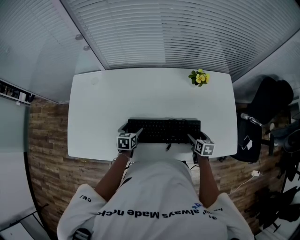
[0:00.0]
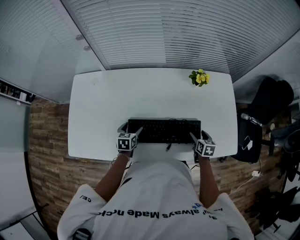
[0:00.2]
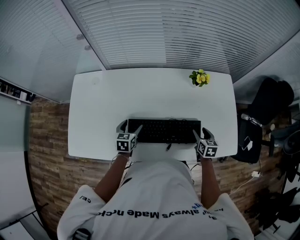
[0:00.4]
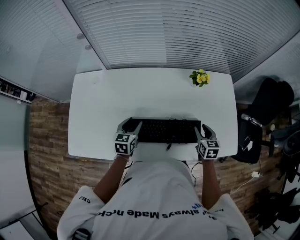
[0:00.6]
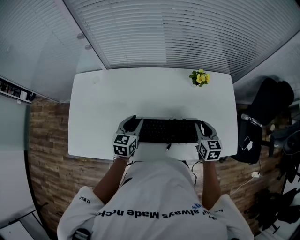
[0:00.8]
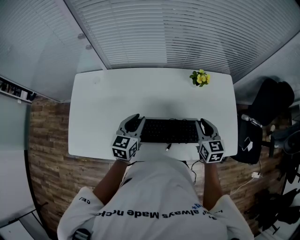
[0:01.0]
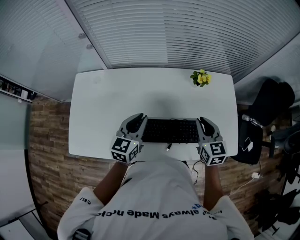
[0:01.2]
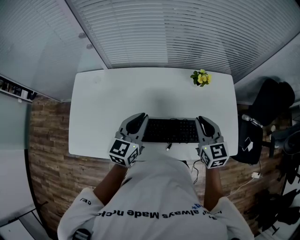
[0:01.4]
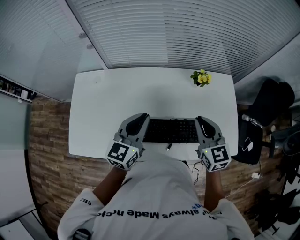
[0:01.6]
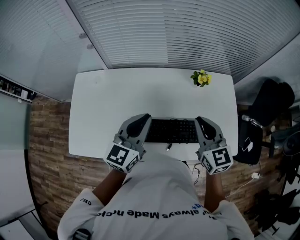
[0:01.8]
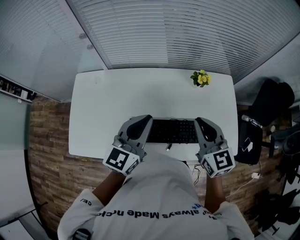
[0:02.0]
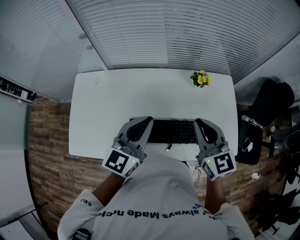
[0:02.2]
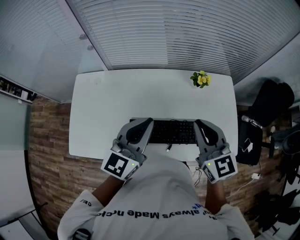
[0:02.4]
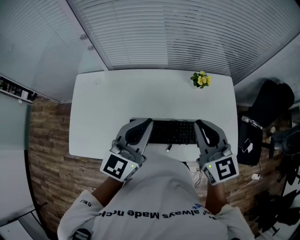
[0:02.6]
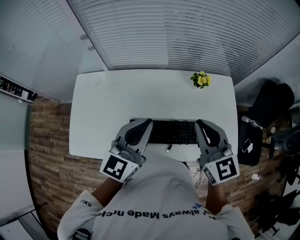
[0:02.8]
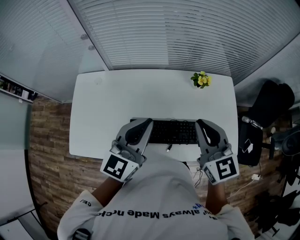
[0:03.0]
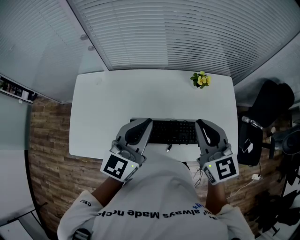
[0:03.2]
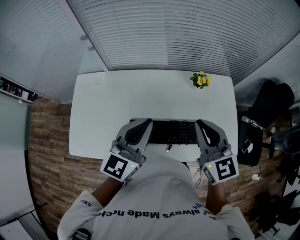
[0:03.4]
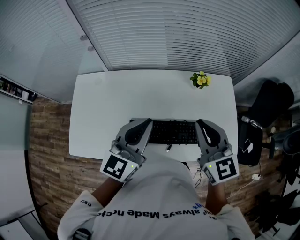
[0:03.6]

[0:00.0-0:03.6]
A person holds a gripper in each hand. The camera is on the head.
0:00.0 to 0:01.8: Both grippers move upward, approximately 30 cm. The right gripper tips its fingers upward by some 30 degrees, and closes. Meanwhile the left gripper tips its fingers upward by approximately 40 degrees, and closes up.
0:01.8 to 0:03.6: The grippers both shift upward by approximately 5 cm.

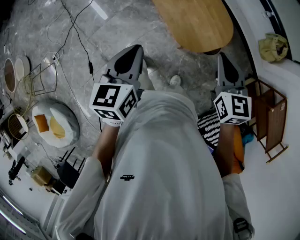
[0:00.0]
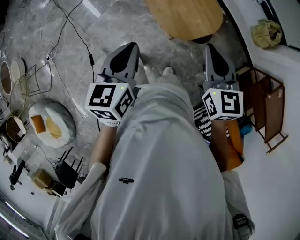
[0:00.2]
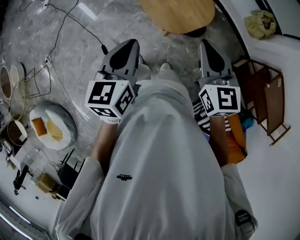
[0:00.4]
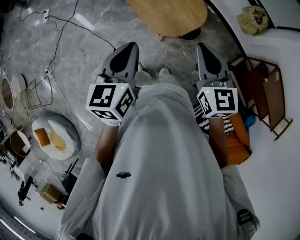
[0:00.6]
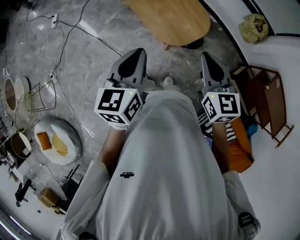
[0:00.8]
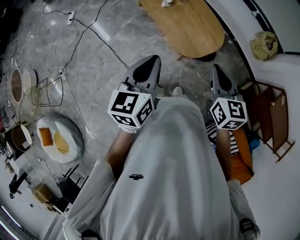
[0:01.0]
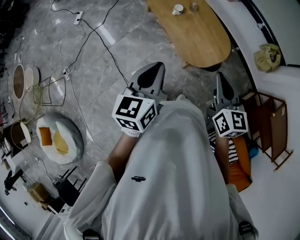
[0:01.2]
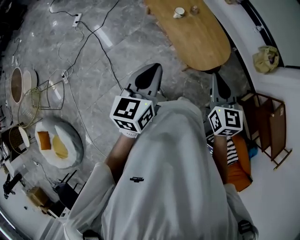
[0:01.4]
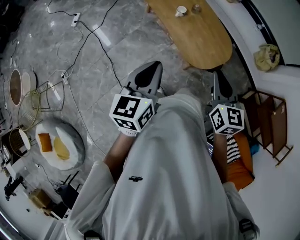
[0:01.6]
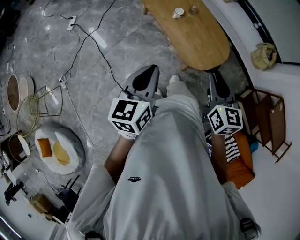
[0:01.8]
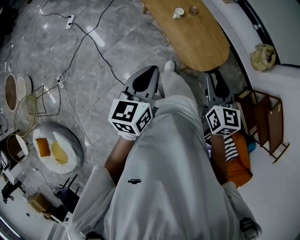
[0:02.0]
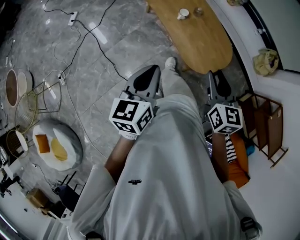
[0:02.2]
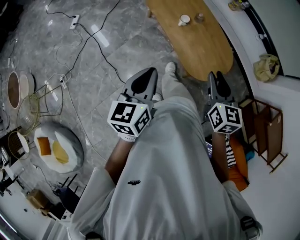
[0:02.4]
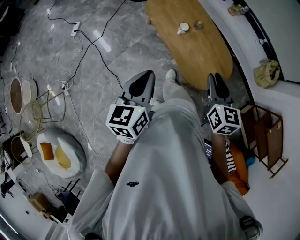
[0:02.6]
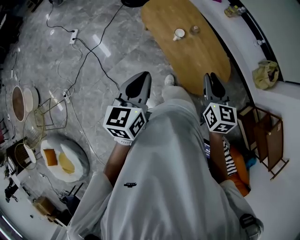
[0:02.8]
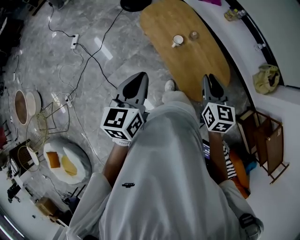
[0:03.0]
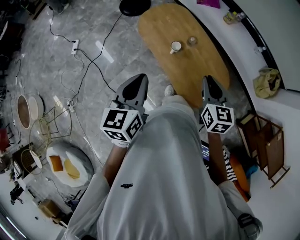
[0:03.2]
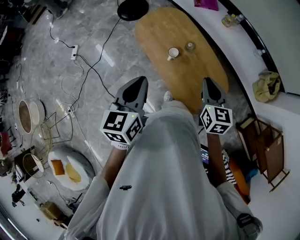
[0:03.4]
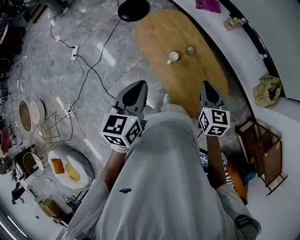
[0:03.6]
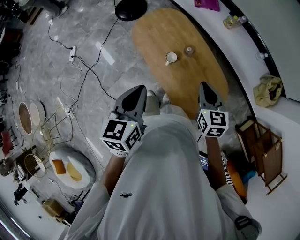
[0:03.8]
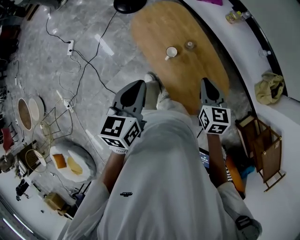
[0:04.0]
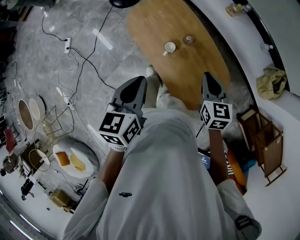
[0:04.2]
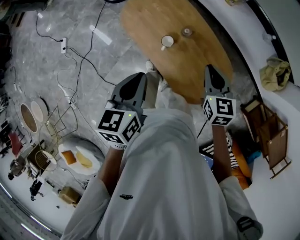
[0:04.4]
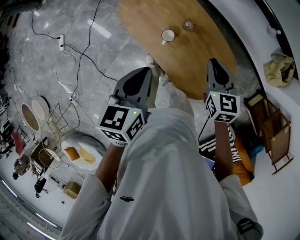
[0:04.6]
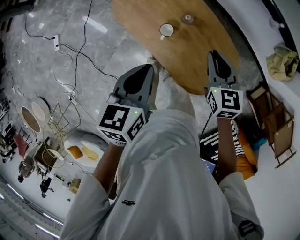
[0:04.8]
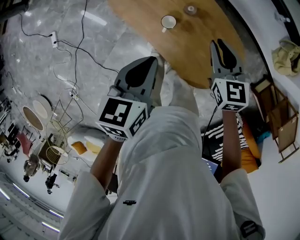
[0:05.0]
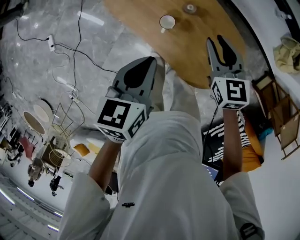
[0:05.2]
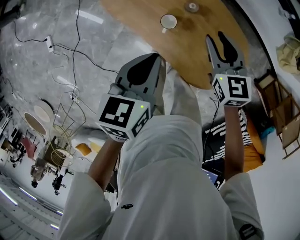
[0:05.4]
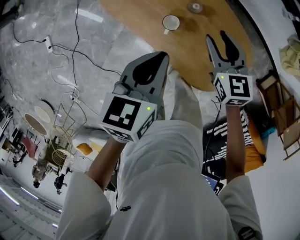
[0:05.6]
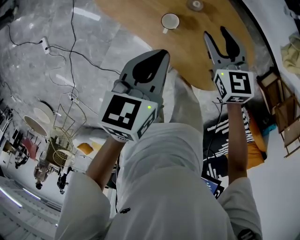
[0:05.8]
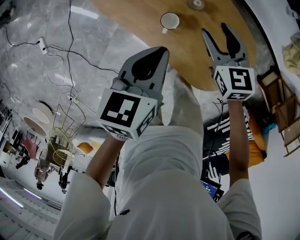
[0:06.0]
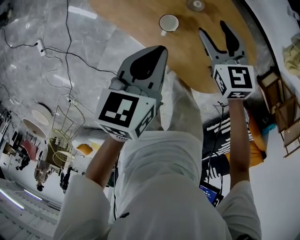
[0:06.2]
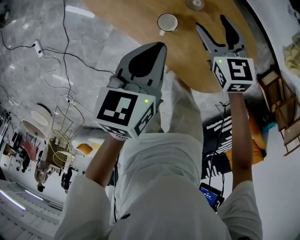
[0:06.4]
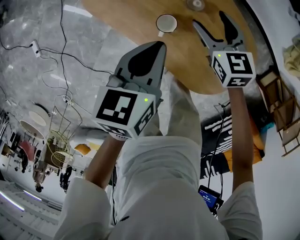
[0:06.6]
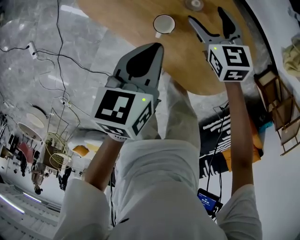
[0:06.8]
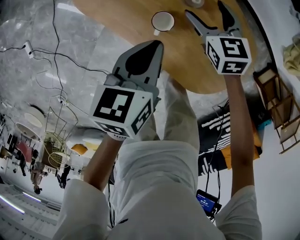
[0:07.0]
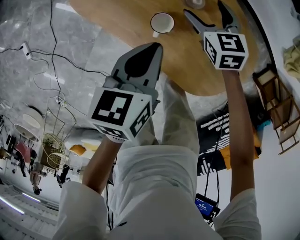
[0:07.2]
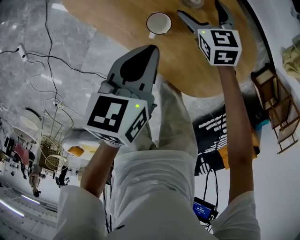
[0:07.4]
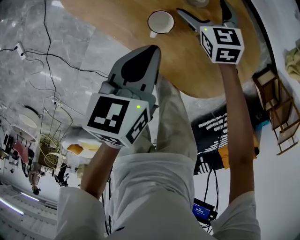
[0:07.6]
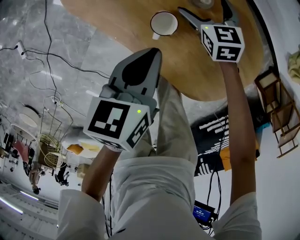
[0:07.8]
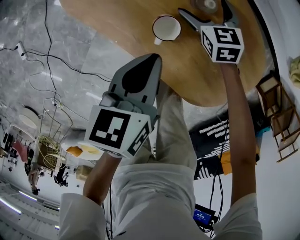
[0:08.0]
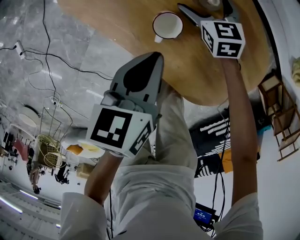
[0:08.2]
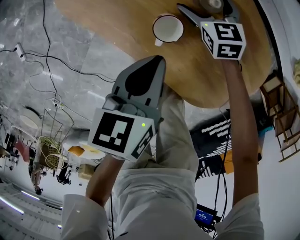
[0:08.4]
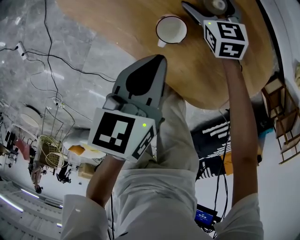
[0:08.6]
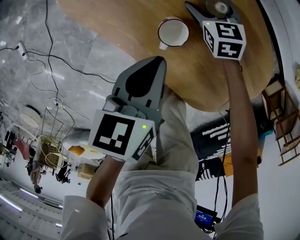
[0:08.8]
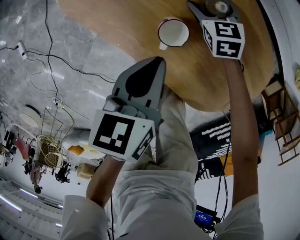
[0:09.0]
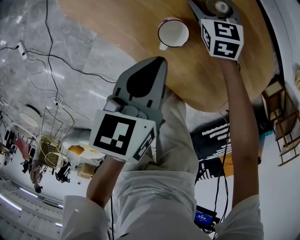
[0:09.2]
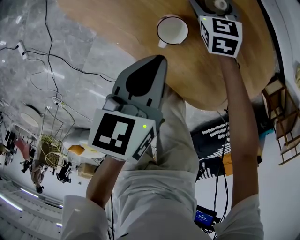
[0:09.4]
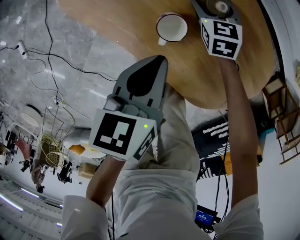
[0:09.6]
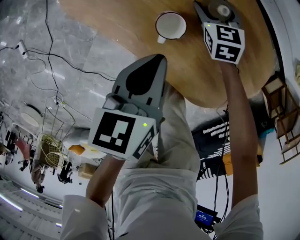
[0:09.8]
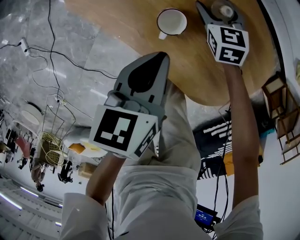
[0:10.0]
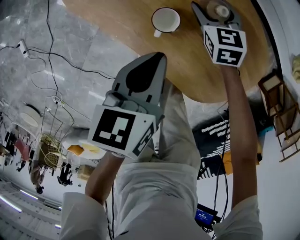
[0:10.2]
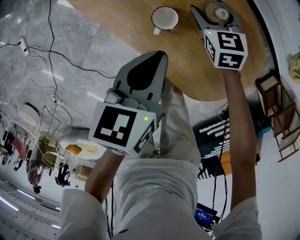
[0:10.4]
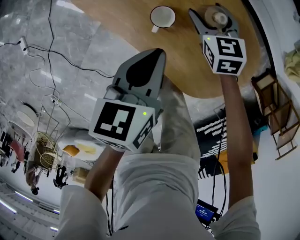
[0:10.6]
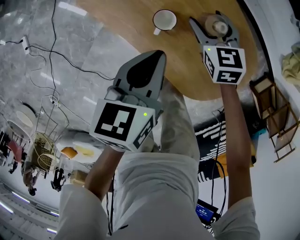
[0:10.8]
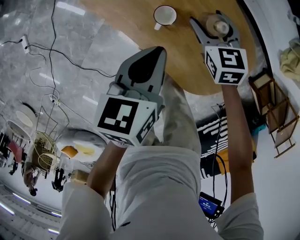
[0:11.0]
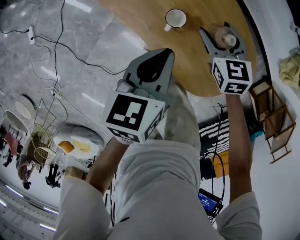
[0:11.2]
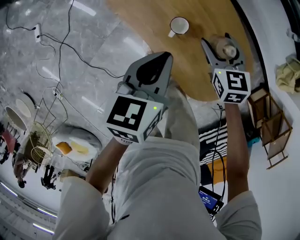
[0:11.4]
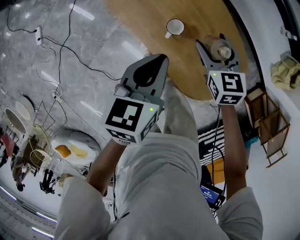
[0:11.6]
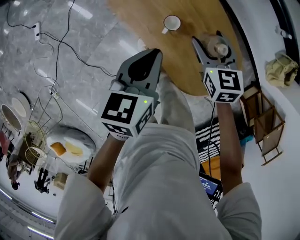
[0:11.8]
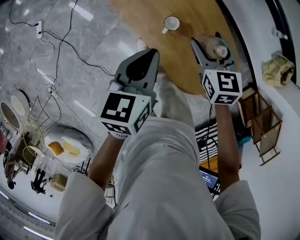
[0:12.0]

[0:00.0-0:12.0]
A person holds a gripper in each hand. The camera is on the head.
0:00.0 to 0:01.6: The right gripper is displaced to the left and backward by approximately 10 cm; the left gripper goes approximately 5 cm backward, and goes to the right and returns, some 10 cm each way.
0:01.6 to 0:03.0: Both grippers move forward, roughly 20 cm.
0:03.0 to 0:04.4: The right gripper is displaced forward and downward by approximately 20 cm, while the left gripper goes some 20 cm forward.
0:04.4 to 0:06.0: The two grippers go about 20 cm downward and forward. The right gripper opens up; the left gripper changes its angle by approximately 20 degrees.
0:06.0 to 0:07.6: The two grippers go about 15 cm downward. The right gripper opens.
0:07.6 to 0:09.0: The right gripper is displaced downward by approximately 10 cm.
0:09.0 to 0:10.4: The left gripper moves upward, some 5 cm; the right gripper is displaced upward by roughly 10 cm.
0:10.4 to 0:12.0: Both grippers move upward, roughly 20 cm.

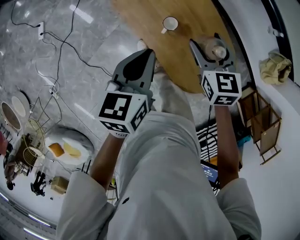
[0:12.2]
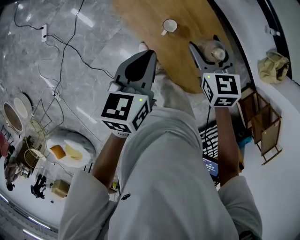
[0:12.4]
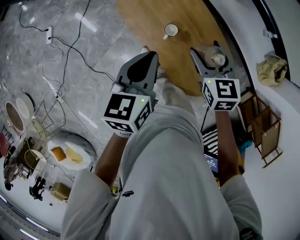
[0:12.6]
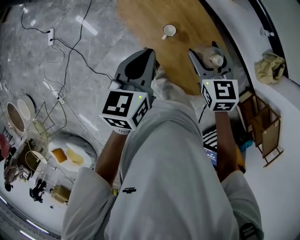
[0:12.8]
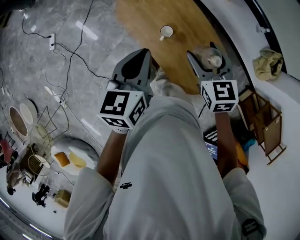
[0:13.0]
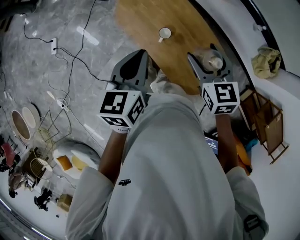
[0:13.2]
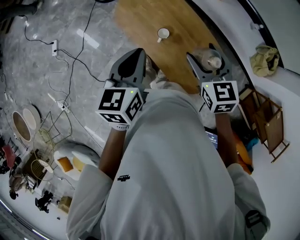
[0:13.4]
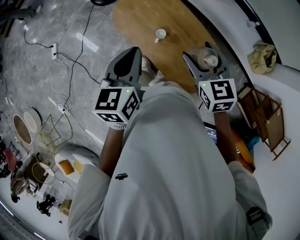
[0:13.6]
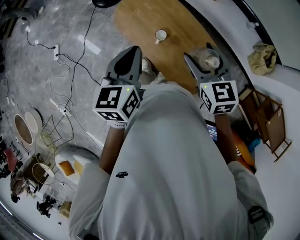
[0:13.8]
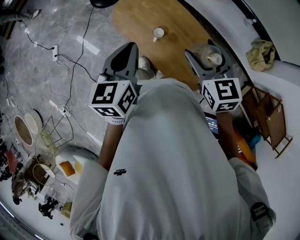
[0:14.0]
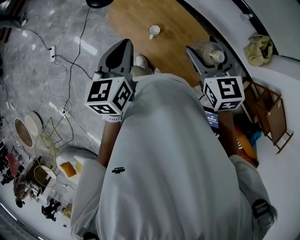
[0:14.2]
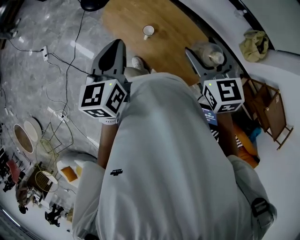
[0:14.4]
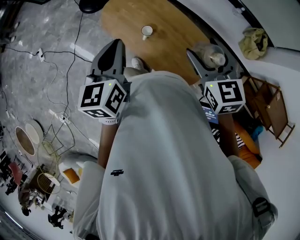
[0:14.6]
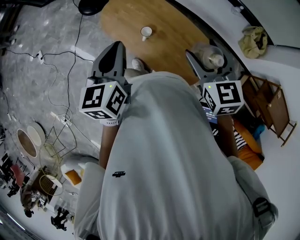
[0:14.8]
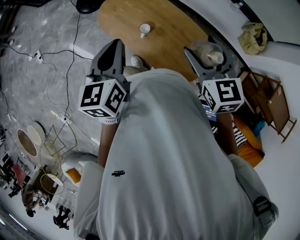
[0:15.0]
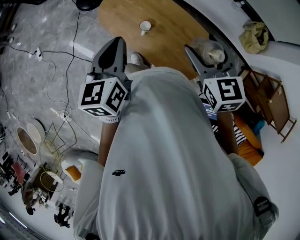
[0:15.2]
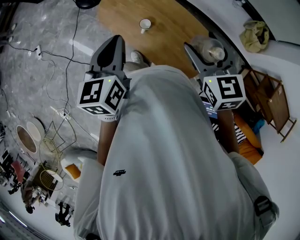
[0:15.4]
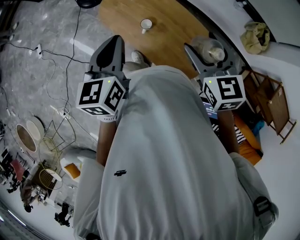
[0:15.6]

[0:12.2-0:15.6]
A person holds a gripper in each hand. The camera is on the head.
0:12.2 to 0:13.8: The right gripper travels upward and backward by approximately 20 cm, while the left gripper heads upward, covering roughly 15 cm.
0:13.8 to 0:15.6: The right gripper shifts some 5 cm to the right.

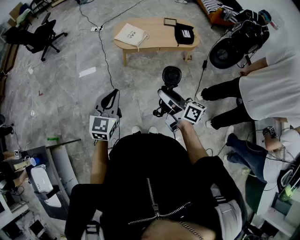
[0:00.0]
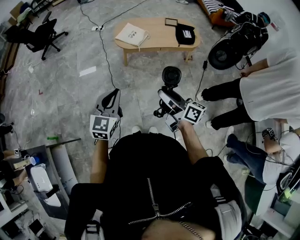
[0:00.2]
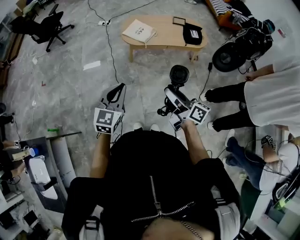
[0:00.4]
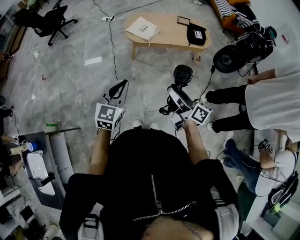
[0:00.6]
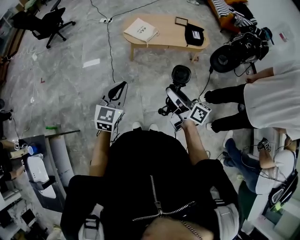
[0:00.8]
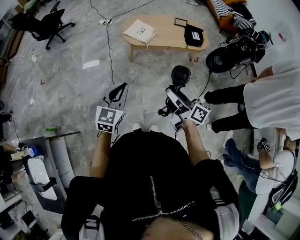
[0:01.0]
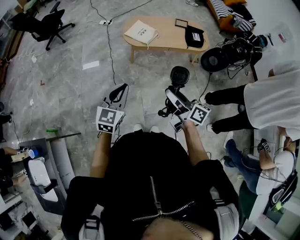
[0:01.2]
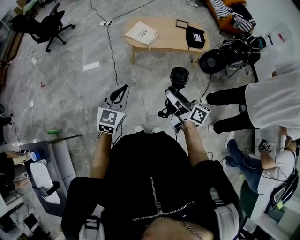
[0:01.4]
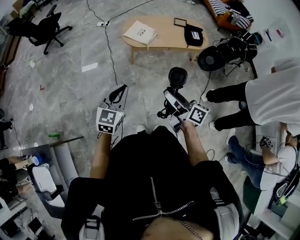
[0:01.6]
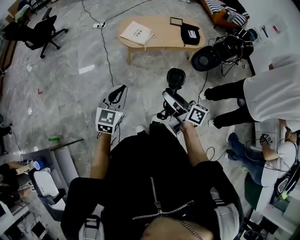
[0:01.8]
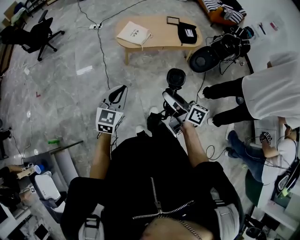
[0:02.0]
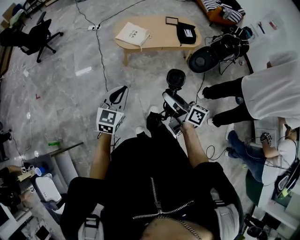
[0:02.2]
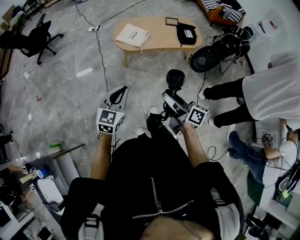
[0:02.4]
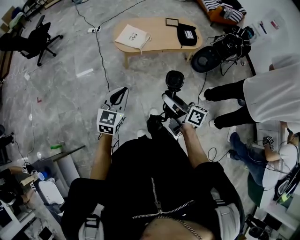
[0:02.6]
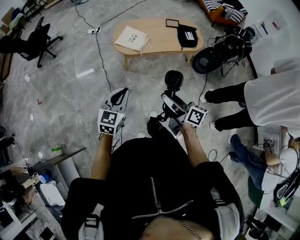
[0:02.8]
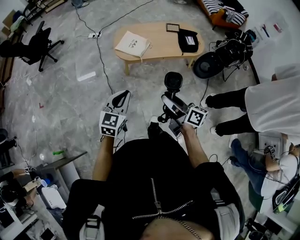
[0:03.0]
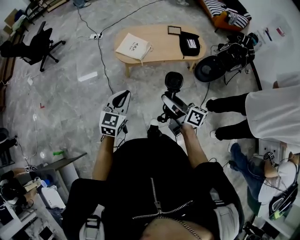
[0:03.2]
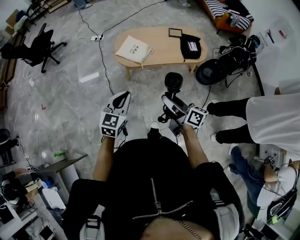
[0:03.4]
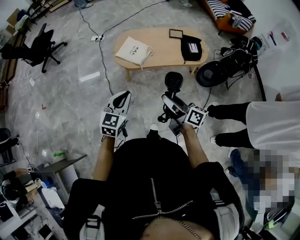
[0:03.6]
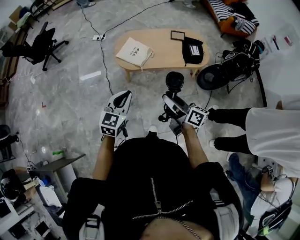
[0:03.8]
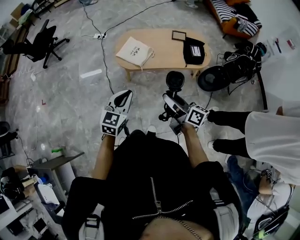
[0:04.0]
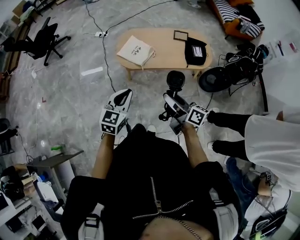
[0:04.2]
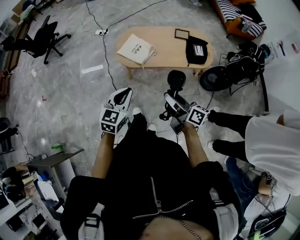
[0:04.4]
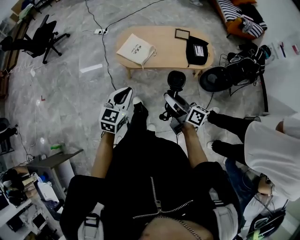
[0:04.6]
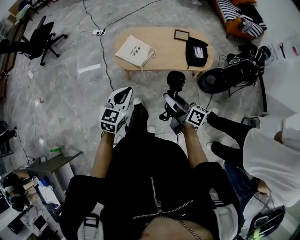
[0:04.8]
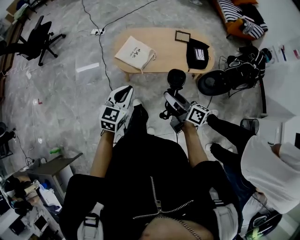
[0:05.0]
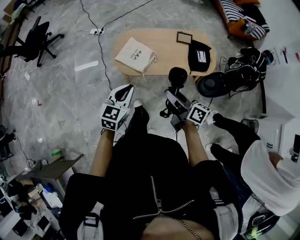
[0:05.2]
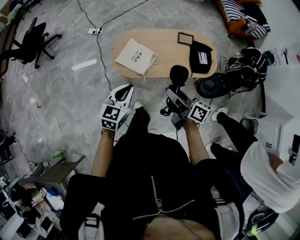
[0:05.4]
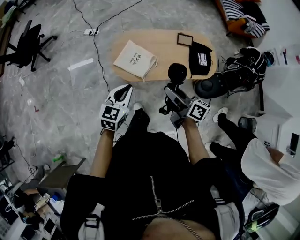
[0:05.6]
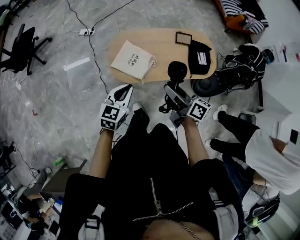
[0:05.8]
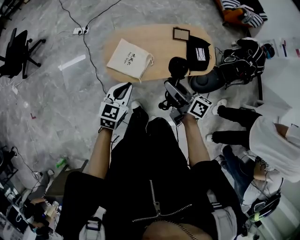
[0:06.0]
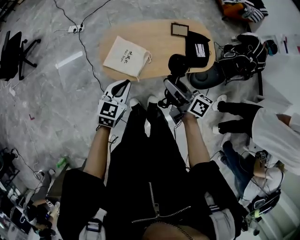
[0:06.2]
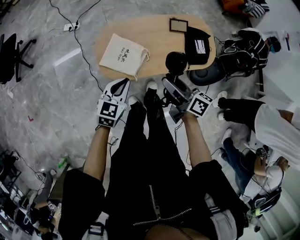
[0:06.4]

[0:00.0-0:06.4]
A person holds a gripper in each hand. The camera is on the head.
0:00.0 to 0:01.6: The left gripper changes place by some 5 cm. The right gripper goes about 5 cm to the left.
0:01.6 to 0:03.2: The two grippers go some 15 cm forward and to the right.
0:03.2 to 0:04.8: The two grippers go about 15 cm forward and to the right.
0:04.8 to 0:06.4: The grippers both shift forward by approximately 25 cm.
